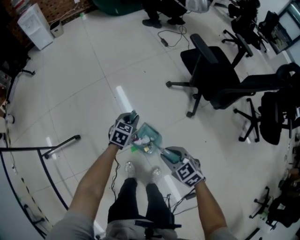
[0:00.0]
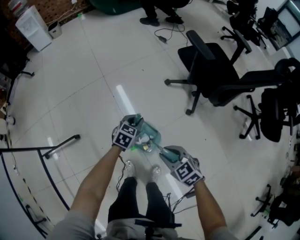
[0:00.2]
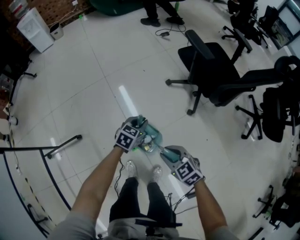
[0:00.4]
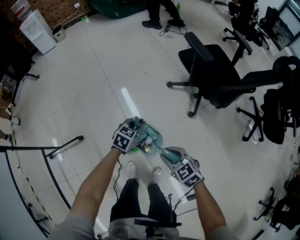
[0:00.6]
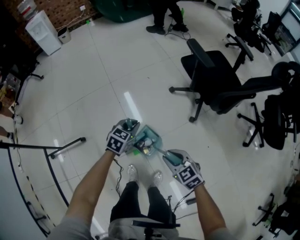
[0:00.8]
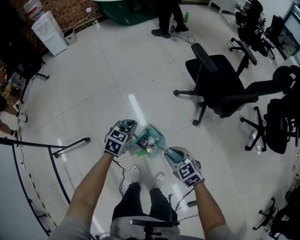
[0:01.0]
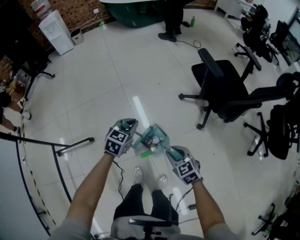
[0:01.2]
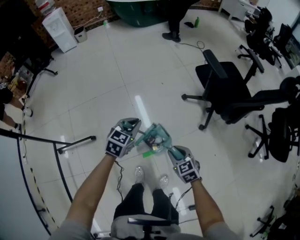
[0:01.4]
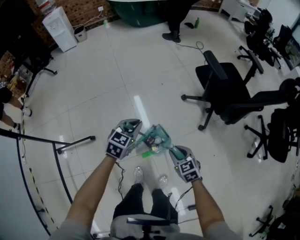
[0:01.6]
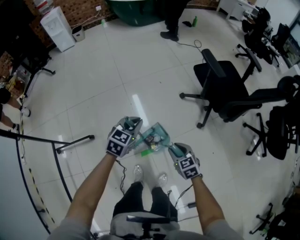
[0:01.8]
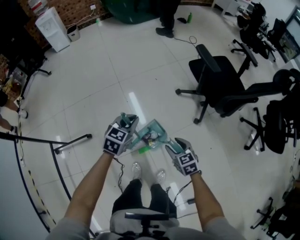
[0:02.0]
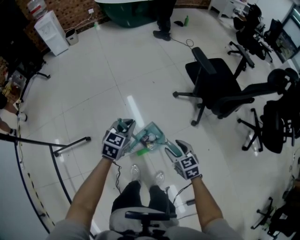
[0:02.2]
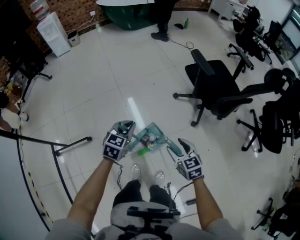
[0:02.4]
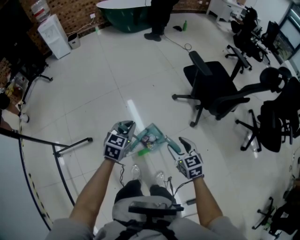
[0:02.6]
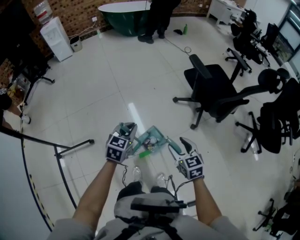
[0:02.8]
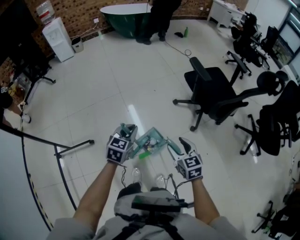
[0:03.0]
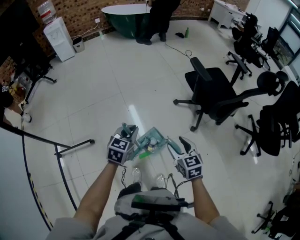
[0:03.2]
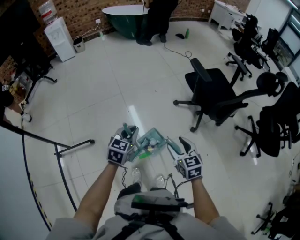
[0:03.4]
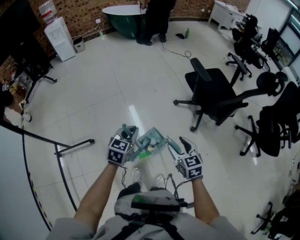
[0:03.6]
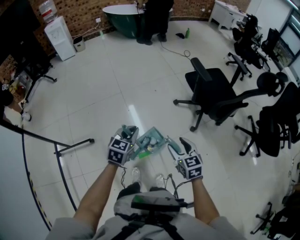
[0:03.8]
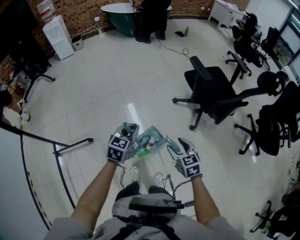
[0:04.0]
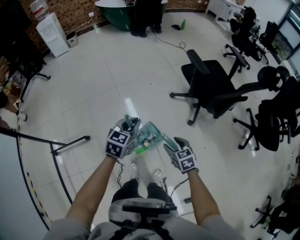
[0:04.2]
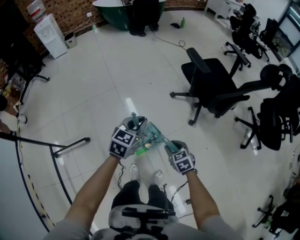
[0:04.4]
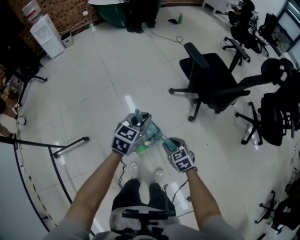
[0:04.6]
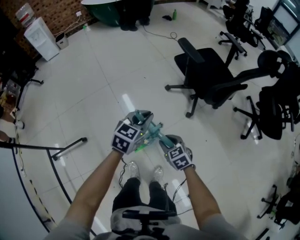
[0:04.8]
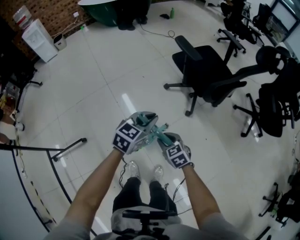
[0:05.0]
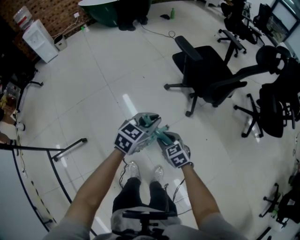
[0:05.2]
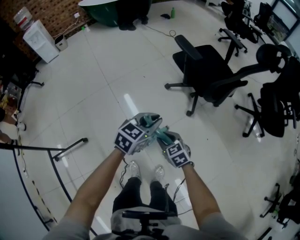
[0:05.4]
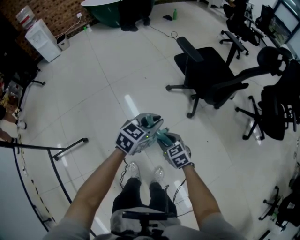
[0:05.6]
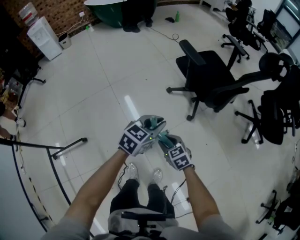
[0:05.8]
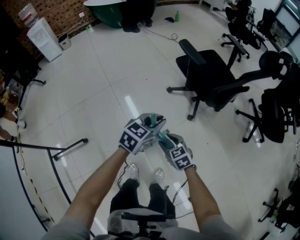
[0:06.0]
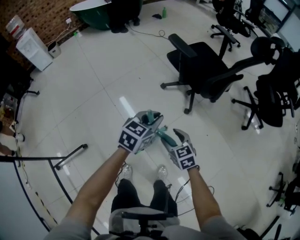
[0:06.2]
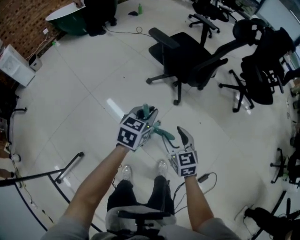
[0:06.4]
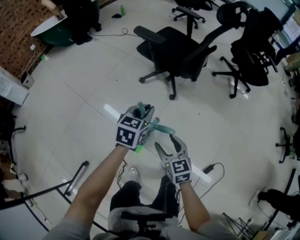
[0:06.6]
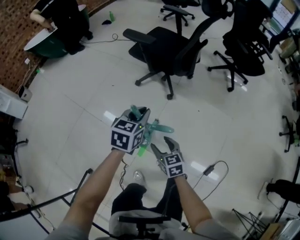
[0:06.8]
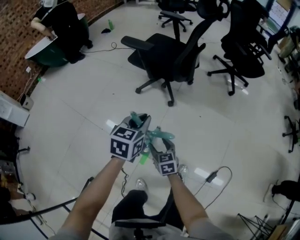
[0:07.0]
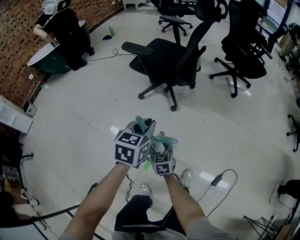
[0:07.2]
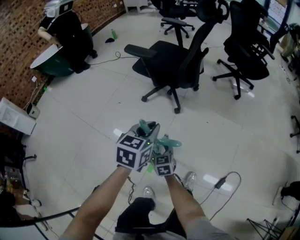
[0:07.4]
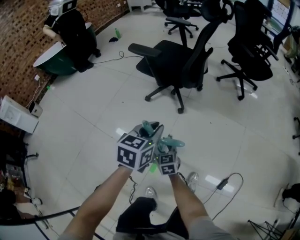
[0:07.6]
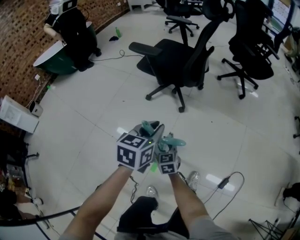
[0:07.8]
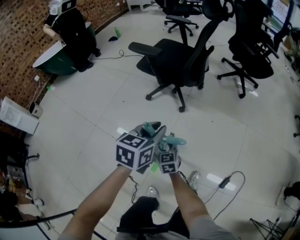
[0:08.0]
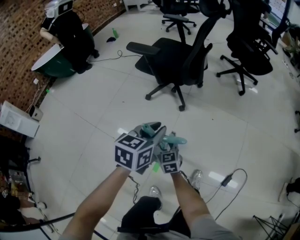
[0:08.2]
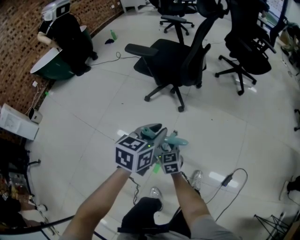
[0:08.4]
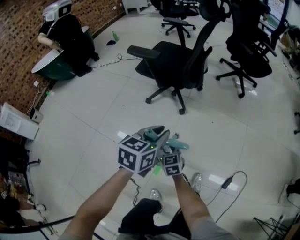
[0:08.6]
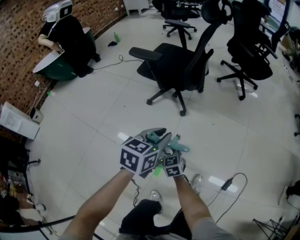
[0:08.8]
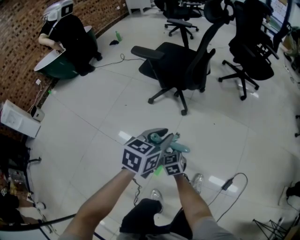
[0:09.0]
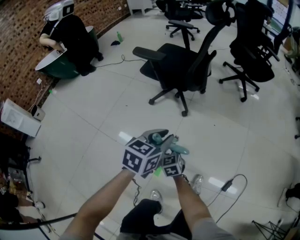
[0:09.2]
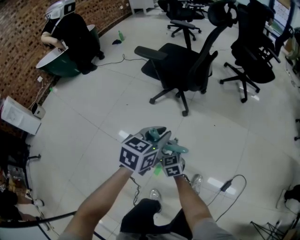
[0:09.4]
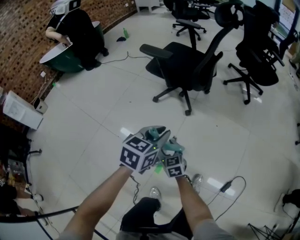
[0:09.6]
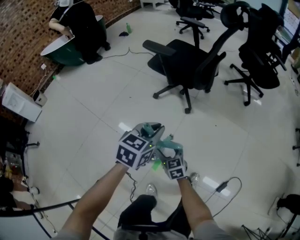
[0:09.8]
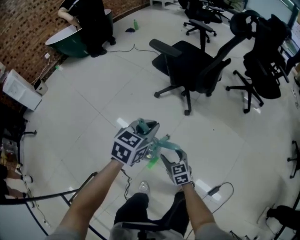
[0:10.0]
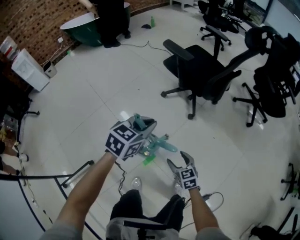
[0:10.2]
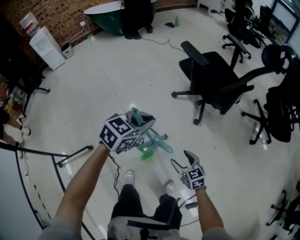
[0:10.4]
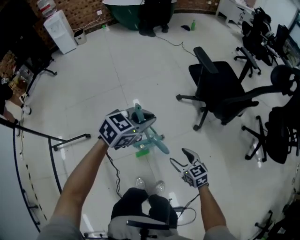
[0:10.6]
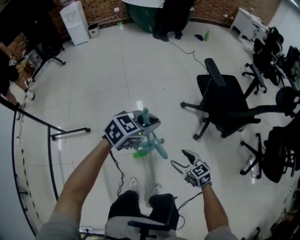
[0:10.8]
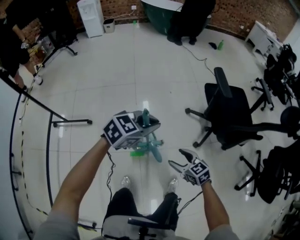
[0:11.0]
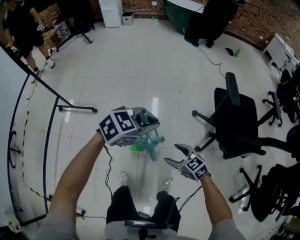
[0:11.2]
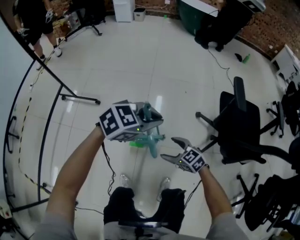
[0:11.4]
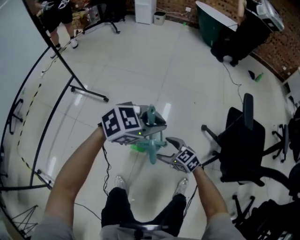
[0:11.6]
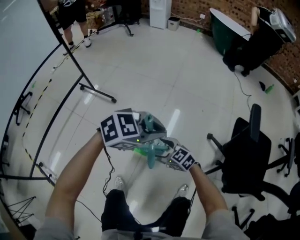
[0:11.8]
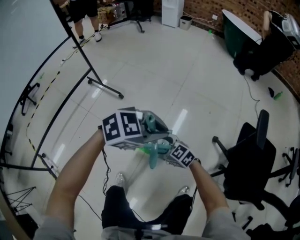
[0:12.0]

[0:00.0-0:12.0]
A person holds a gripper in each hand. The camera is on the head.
0.0 to 1.6 s: The left gripper moves upward, about 15 cm.
1.6 to 3.0 s: The left gripper goes roughly 10 cm backward and upward; the right gripper heads upward, covering roughly 15 cm.
3.0 to 4.4 s: The left gripper is displaced to the right by some 5 cm. Meanwhile the right gripper moves downward, approximately 15 cm.
4.4 to 6.0 s: The left gripper shifts roughly 10 cm to the right.
6.0 to 7.6 s: The right gripper moves downward, about 5 cm, and rotates approximately 50 degrees.
7.6 to 9.0 s: There are only small adjustments of the grippers.
9.0 to 10.4 s: The left gripper shifts by some 10 cm, while the right gripper changes place by roughly 15 cm, changes its angle by approximately 40 degrees, and opens.
10.4 to 12.0 s: The left gripper turns by approximately 30 degrees. The right gripper moves about 15 cm, and swivels some 90 degrees.

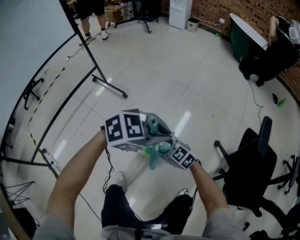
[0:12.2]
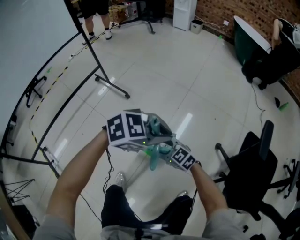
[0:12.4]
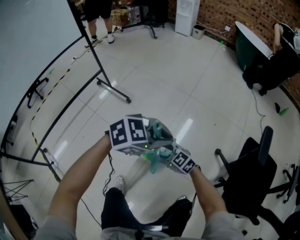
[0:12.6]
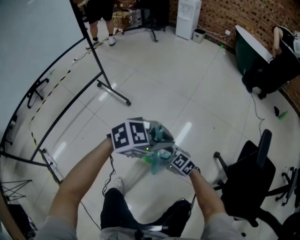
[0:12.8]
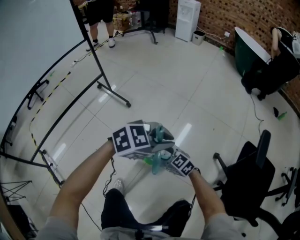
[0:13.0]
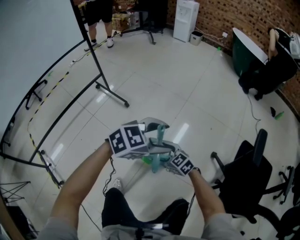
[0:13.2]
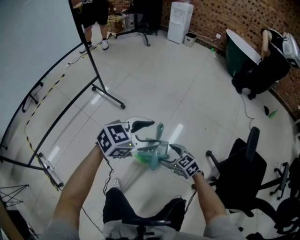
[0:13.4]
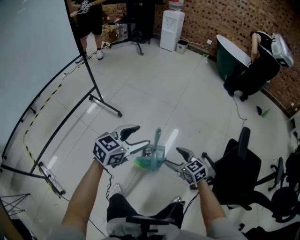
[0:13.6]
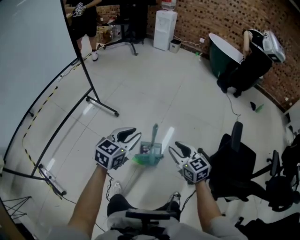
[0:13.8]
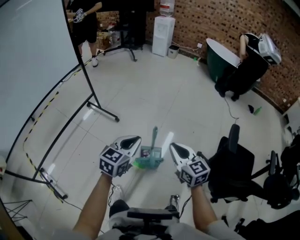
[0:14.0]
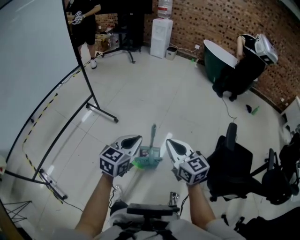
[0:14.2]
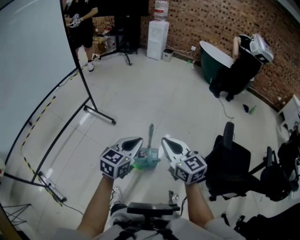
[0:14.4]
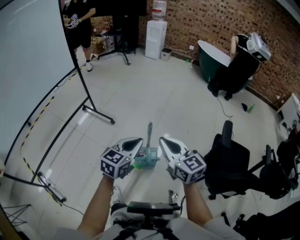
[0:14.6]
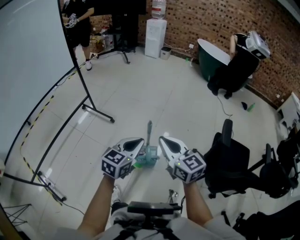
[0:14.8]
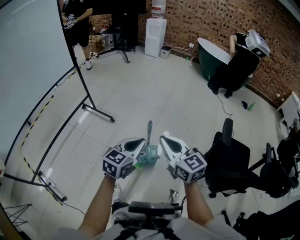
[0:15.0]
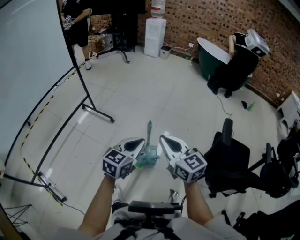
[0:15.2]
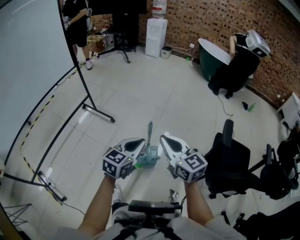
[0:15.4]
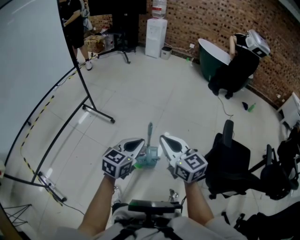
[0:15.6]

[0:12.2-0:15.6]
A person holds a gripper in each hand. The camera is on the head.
12.2 to 13.8 s: The left gripper moves about 15 cm, rotates roughly 50 degrees, and opens, while the right gripper shifts roughly 20 cm upward, and rotates approximately 30 degrees.
13.8 to 15.6 s: The right gripper heads upward, covering roughly 15 cm, and closes its fingers; the left gripper travels backward by some 5 cm, and closes.

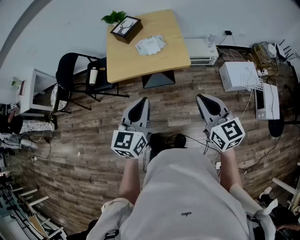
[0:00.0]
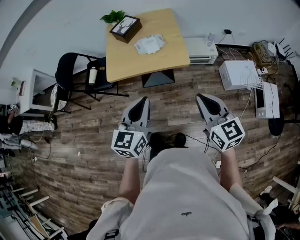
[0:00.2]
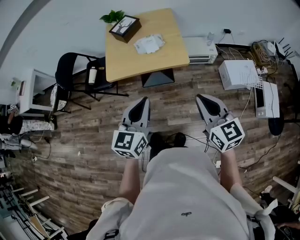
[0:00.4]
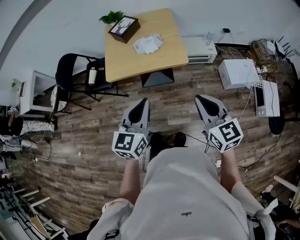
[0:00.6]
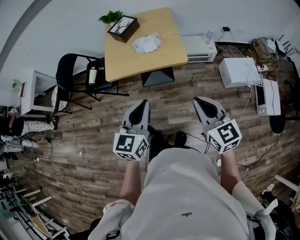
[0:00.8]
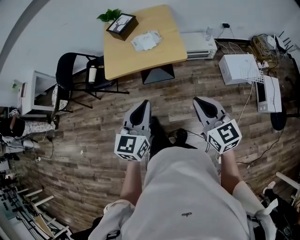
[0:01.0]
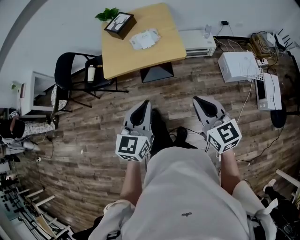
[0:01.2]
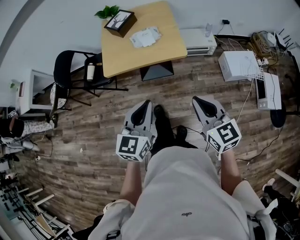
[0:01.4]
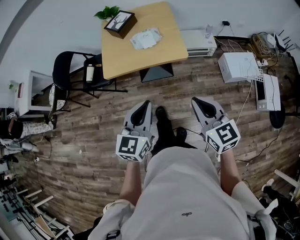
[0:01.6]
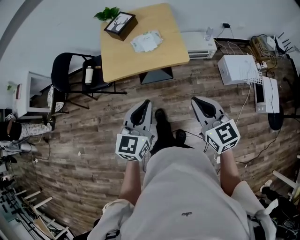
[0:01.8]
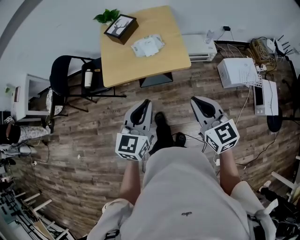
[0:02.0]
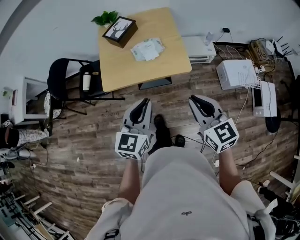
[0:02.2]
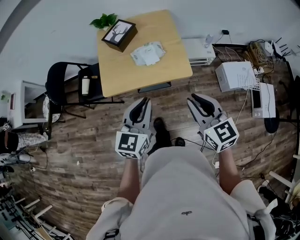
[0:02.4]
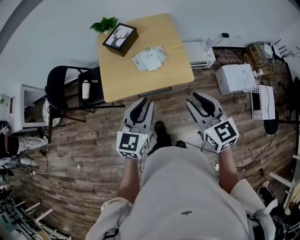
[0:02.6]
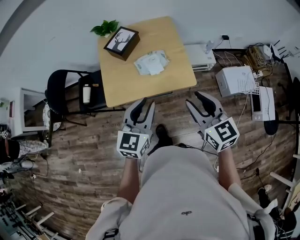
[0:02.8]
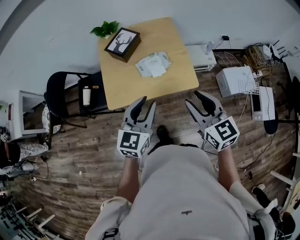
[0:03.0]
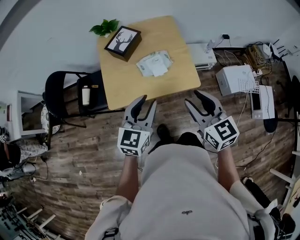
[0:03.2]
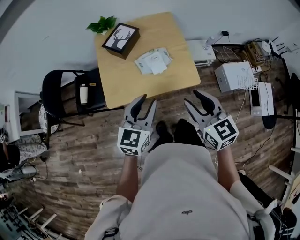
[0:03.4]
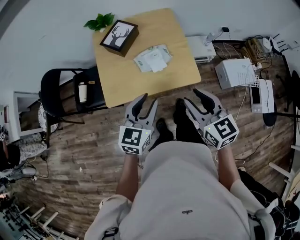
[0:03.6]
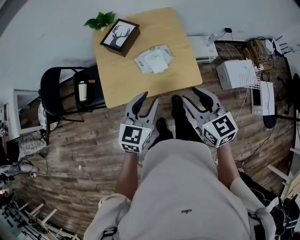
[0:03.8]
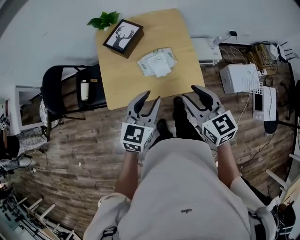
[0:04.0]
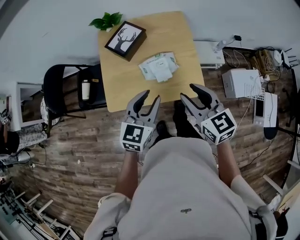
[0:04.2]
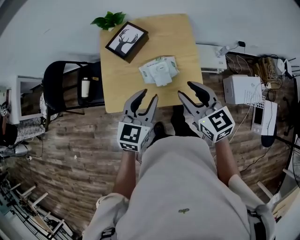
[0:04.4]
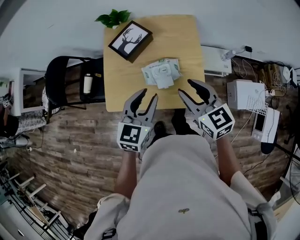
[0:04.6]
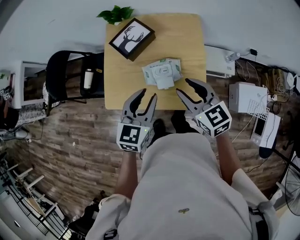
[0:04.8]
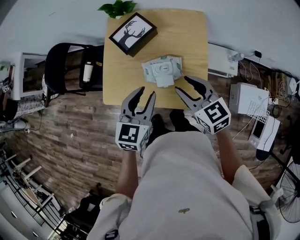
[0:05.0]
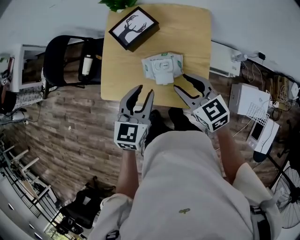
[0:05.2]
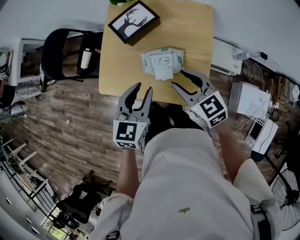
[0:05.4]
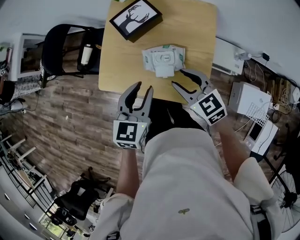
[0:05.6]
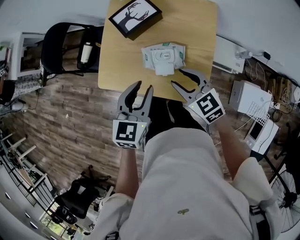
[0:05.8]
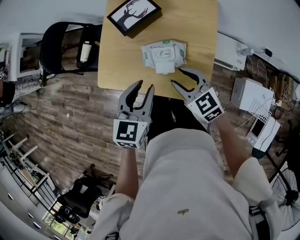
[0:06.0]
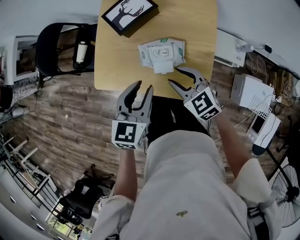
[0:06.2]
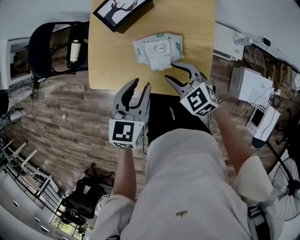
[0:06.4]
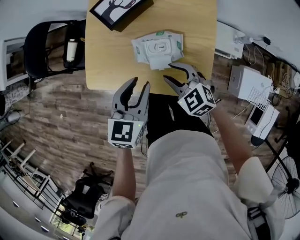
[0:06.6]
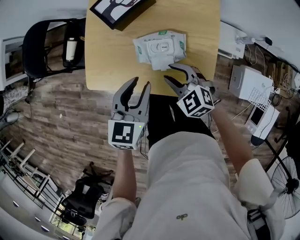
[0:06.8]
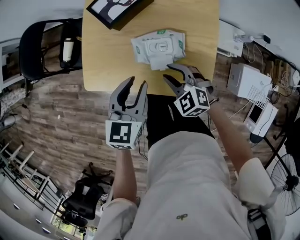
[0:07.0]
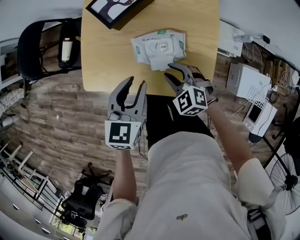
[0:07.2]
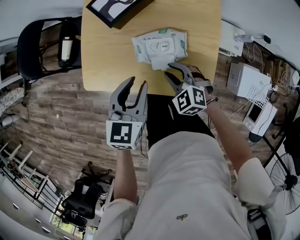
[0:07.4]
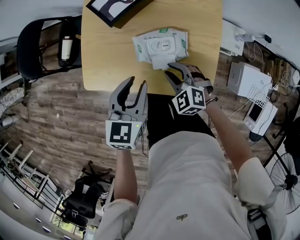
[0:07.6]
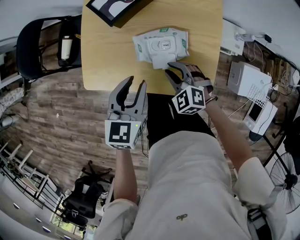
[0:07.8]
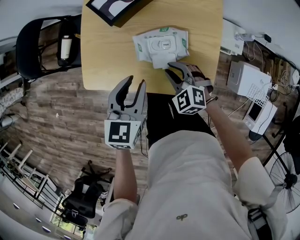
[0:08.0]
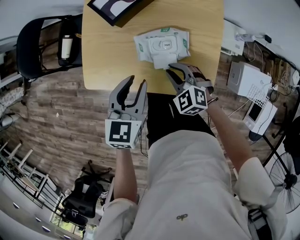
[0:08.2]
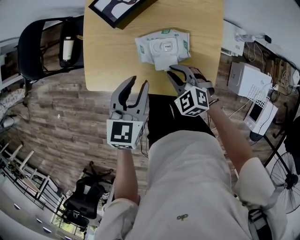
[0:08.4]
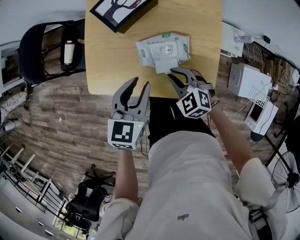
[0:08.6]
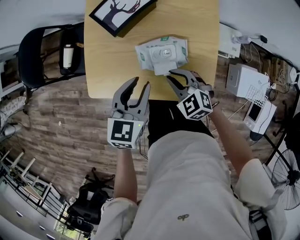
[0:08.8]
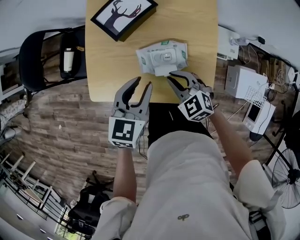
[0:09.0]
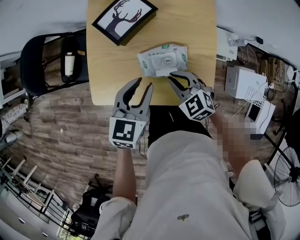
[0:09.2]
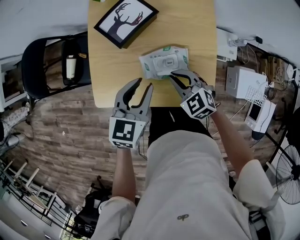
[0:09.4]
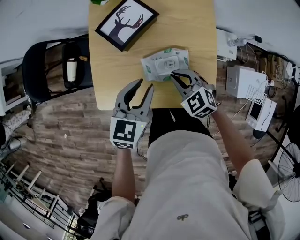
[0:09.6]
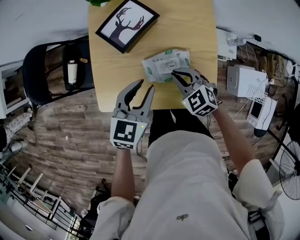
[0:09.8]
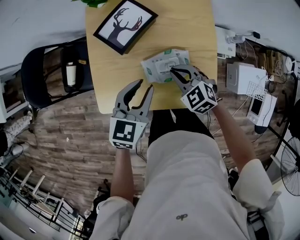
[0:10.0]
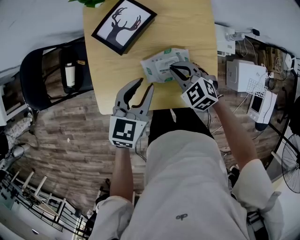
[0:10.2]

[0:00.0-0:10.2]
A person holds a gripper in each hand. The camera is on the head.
0.0 to 1.4 s: The grippers move only a little.
1.4 to 3.0 s: The two grippers go some 25 cm forward. The left gripper opens up; the right gripper opens up.
3.0 to 4.4 s: Both grippers travel together forward, some 15 cm.
4.4 to 5.8 s: The left gripper ends up about 5 cm from where it was, and turns by roughly 20 degrees. The right gripper travels downward and forward by some 15 cm, and turns by some 30 degrees.
5.8 to 7.2 s: The left gripper travels downward by approximately 10 cm. The right gripper travels downward by roughly 15 cm, and turns by some 30 degrees.
7.2 to 8.8 s: The grippers make only small movements.
8.8 to 10.2 s: Both grippers travel together forward, roughly 5 cm.
